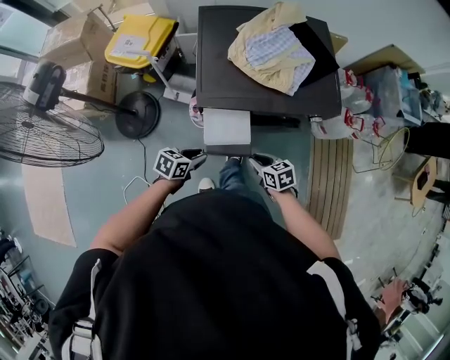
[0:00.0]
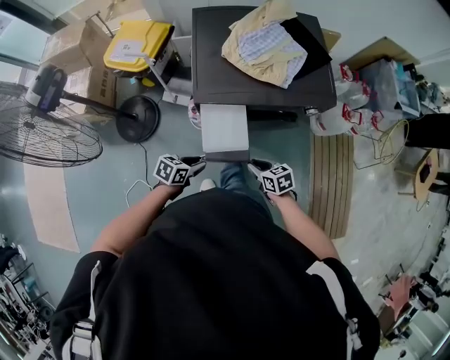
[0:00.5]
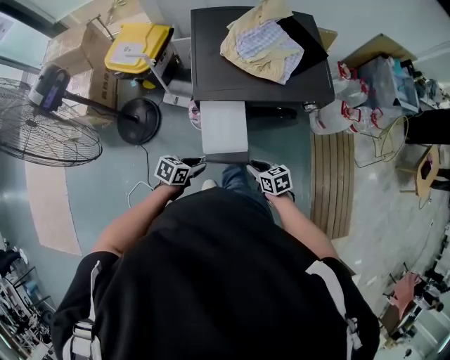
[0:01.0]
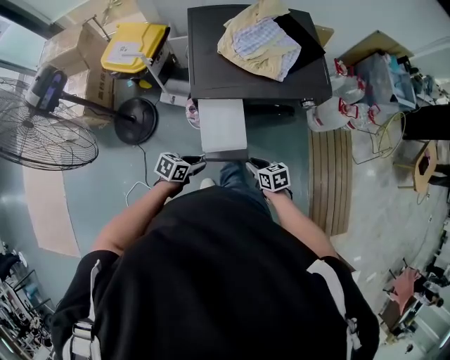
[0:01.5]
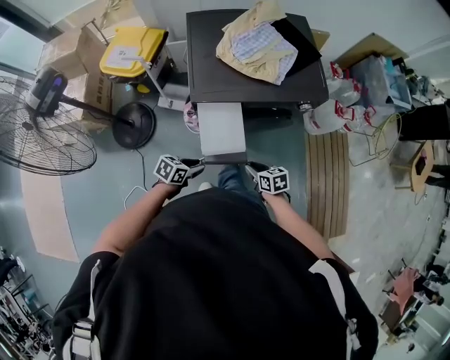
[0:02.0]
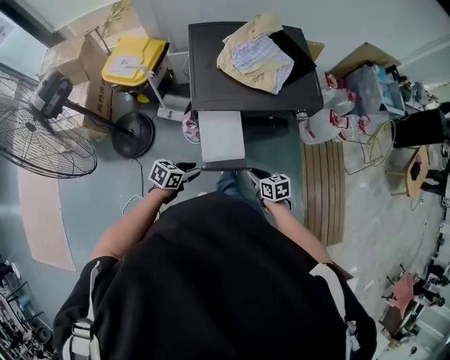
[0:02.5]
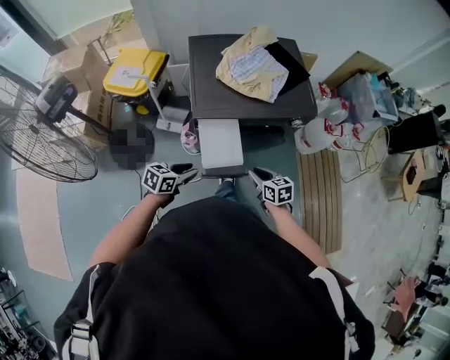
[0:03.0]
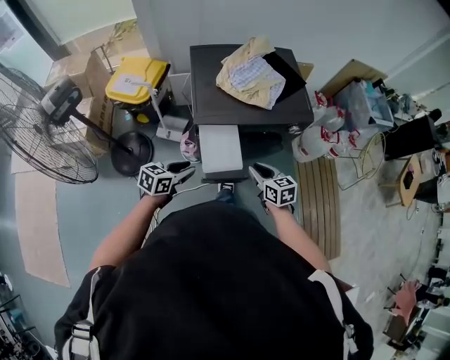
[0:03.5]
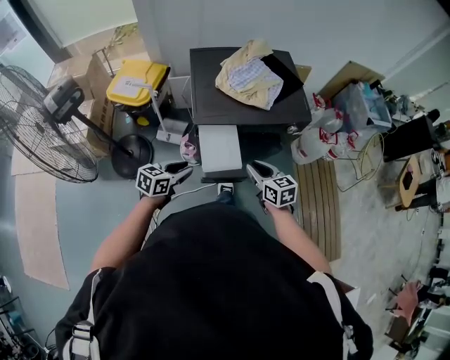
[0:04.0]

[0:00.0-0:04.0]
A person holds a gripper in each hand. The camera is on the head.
0:00.0 to 0:02.0: The right gripper ends up approximately 5 cm from where it was; the left gripper moves approximately 5 cm.
0:02.0 to 0:04.0: Both grippers move upward, some 15 cm. The right gripper turns by roughly 30 degrees. The left gripper swivels some 20 degrees.

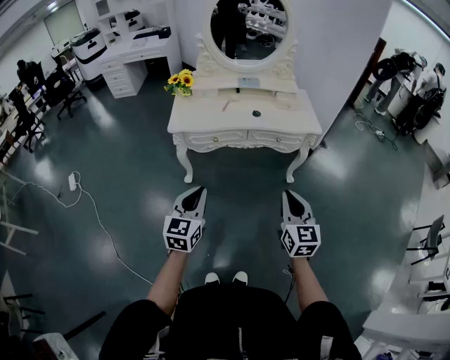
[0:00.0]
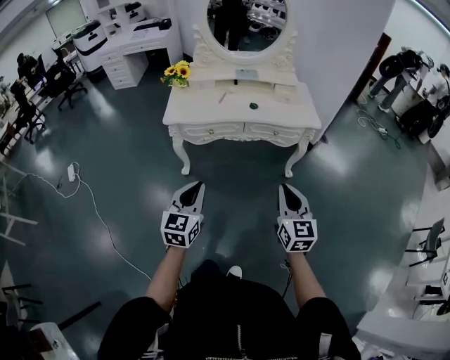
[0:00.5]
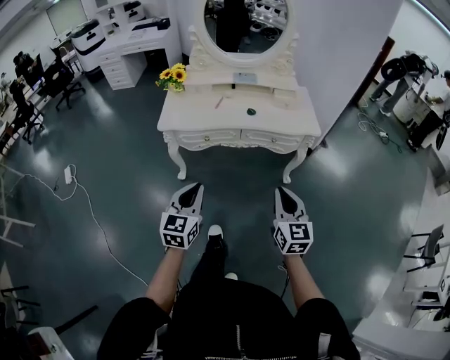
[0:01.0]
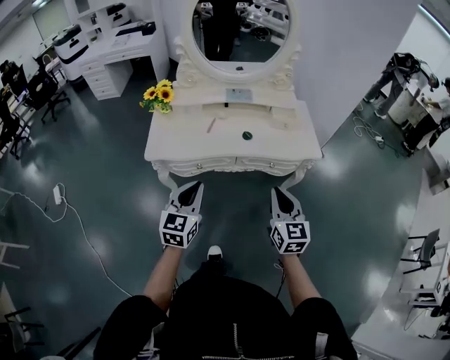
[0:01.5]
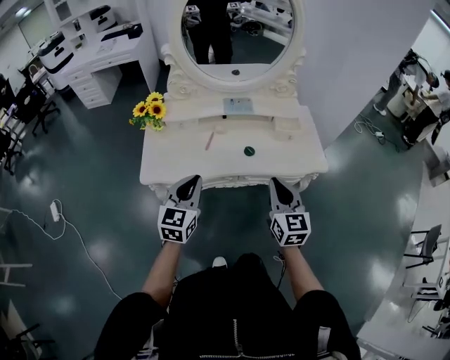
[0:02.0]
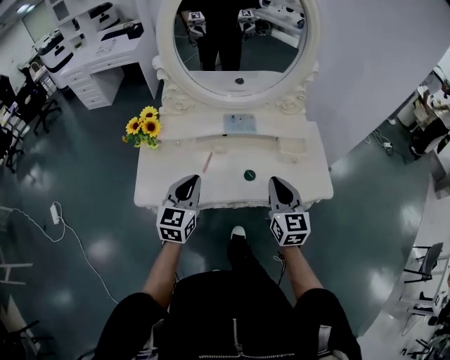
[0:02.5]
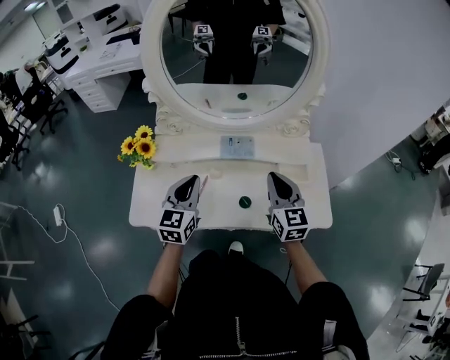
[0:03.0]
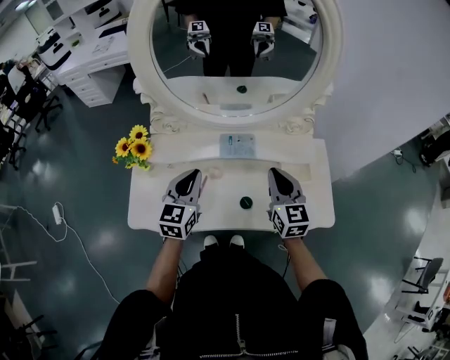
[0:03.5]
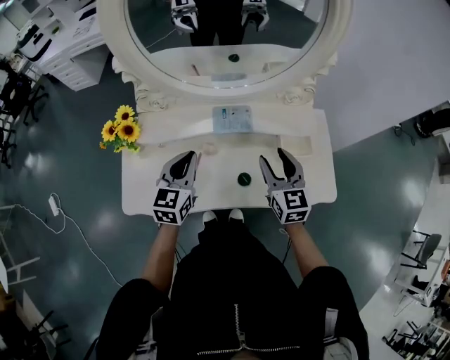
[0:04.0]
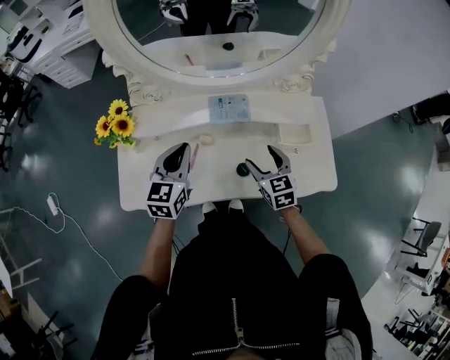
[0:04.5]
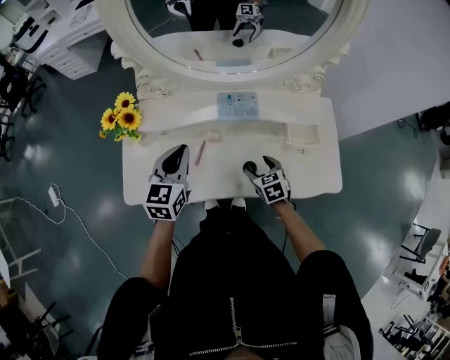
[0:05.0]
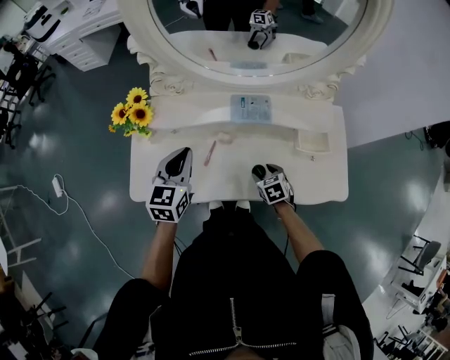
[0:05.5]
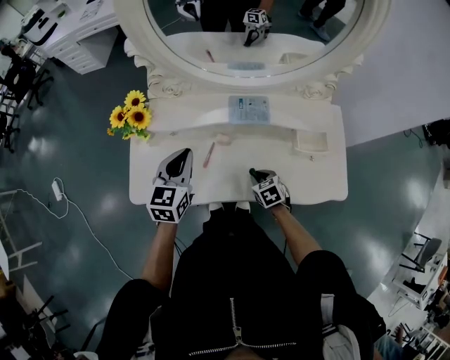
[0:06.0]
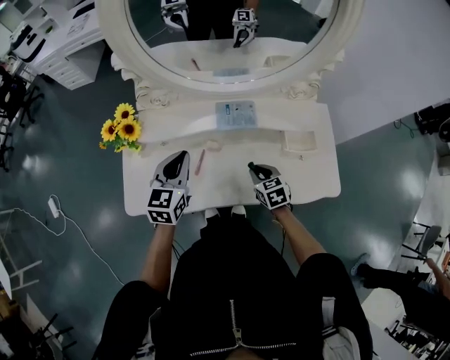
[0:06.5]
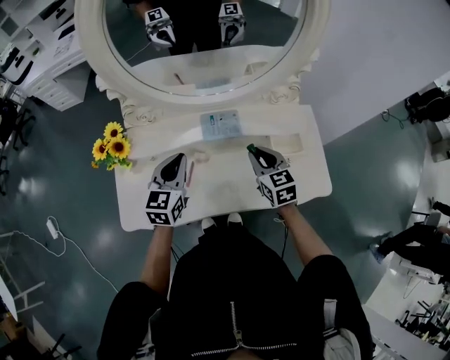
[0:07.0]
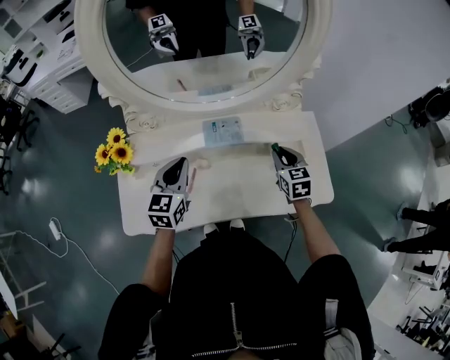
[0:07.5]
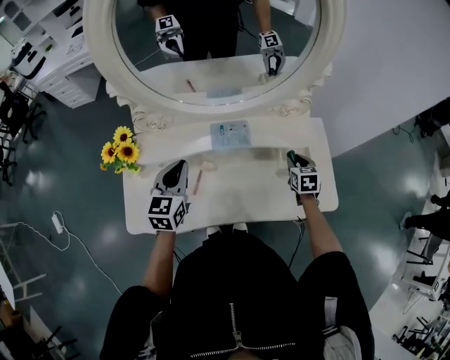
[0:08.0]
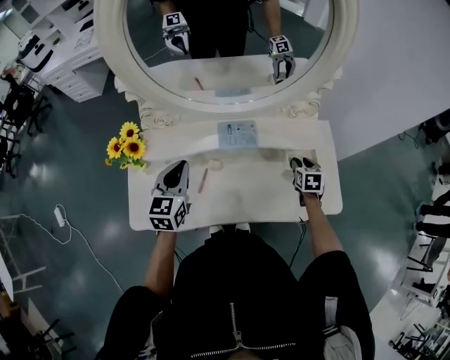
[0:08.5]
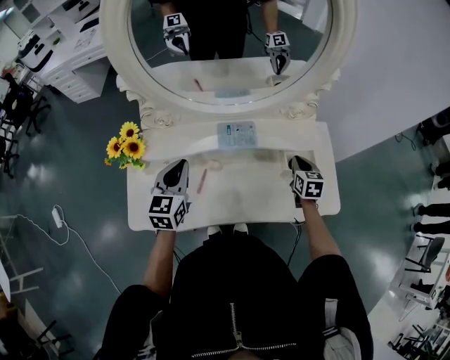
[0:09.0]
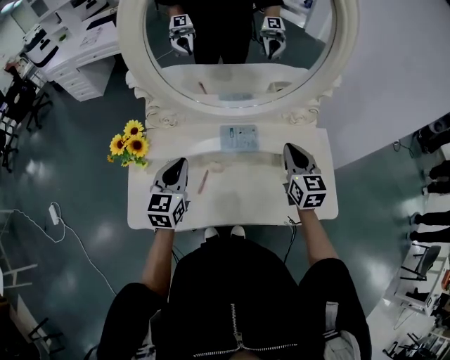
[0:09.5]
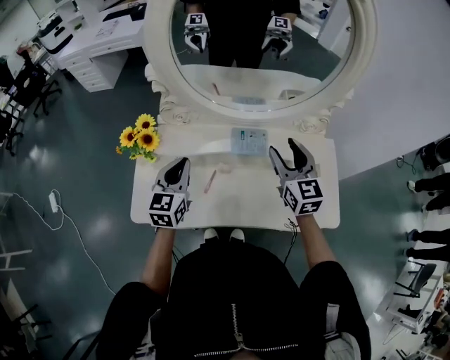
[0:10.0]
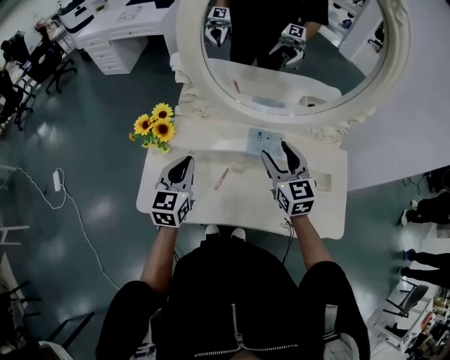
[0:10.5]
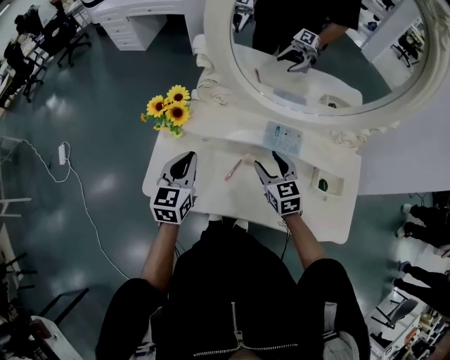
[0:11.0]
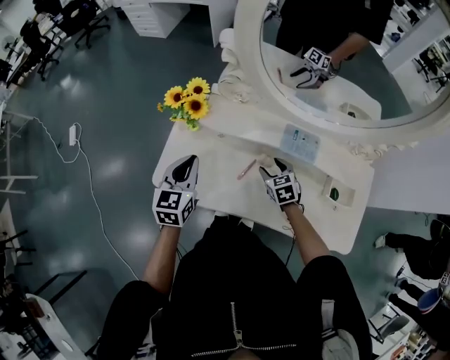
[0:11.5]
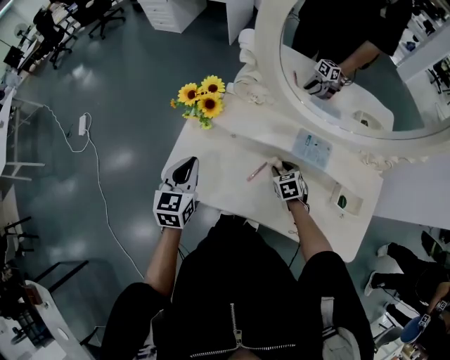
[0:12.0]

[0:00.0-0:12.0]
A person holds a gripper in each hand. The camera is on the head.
0:00.0 to 0:02.0: The two grippers go approximately 40 cm forward.
0:02.0 to 0:04.0: The grippers both shift forward by approximately 30 cm. The right gripper opens its fingers.
0:04.0 to 0:06.0: The left gripper is displaced to the left by some 5 cm, while the right gripper moves downward, some 25 cm, tips its fingers downward by some 40 degrees, and closes up.
0:06.0 to 0:08.0: The right gripper heads to the right, forward and upward, covering about 25 cm, and swivels approximately 30 degrees. The left gripper shifts roughly 5 cm forward.
0:08.0 to 0:10.0: The right gripper moves upward and to the left, approximately 30 cm, angles its fingers upward, by roughly 30 degrees, and opens up, while the left gripper goes roughly 5 cm to the left.
0:10.0 to 0:12.0: The right gripper travels downward and to the left by approximately 35 cm, and angles its fingers downward, by approximately 50 degrees; the left gripper heads to the left, covering roughly 15 cm, and rotates some 20 degrees.

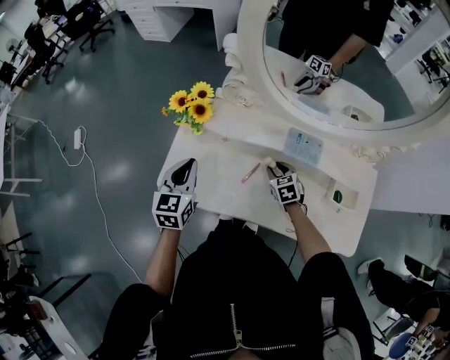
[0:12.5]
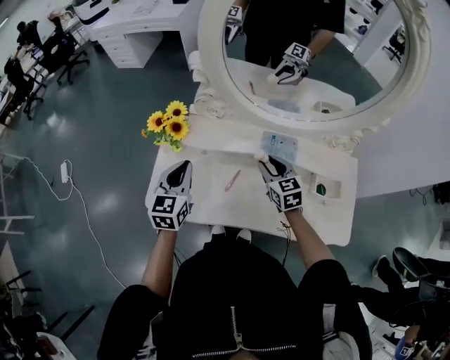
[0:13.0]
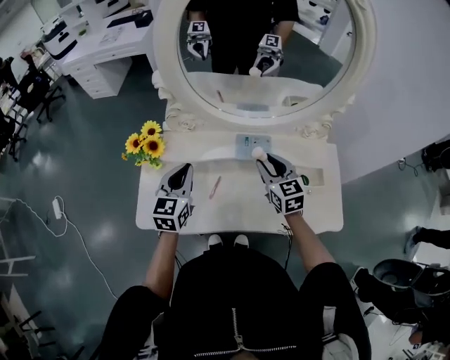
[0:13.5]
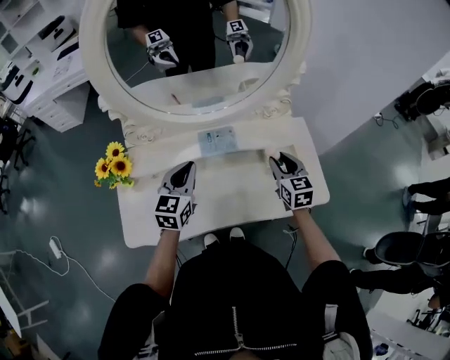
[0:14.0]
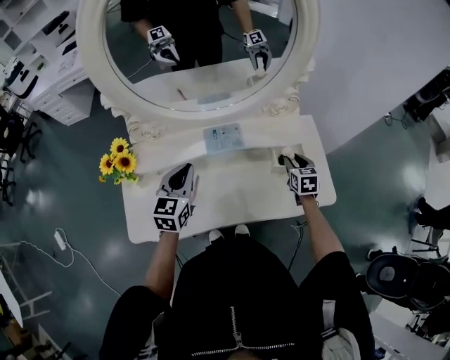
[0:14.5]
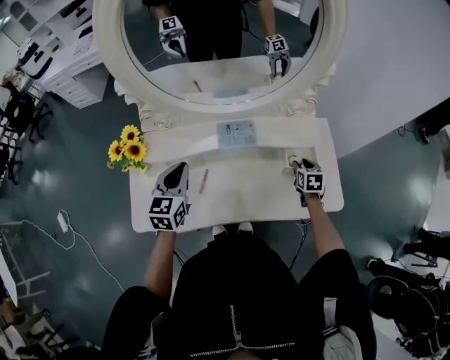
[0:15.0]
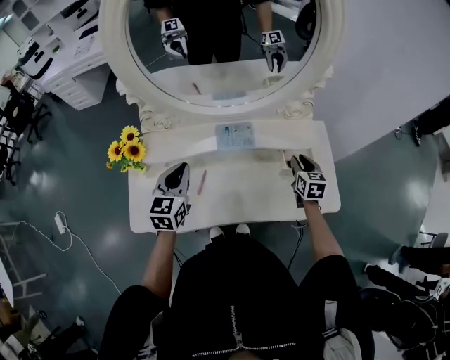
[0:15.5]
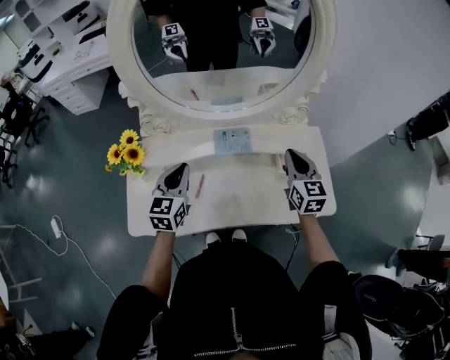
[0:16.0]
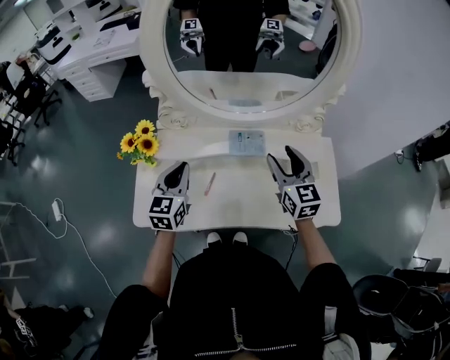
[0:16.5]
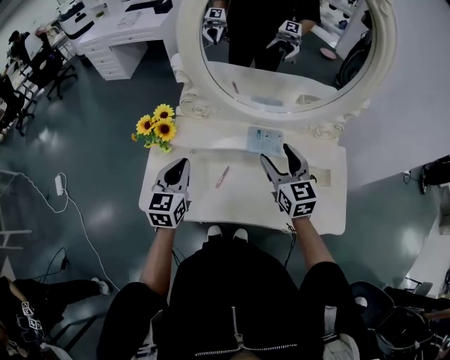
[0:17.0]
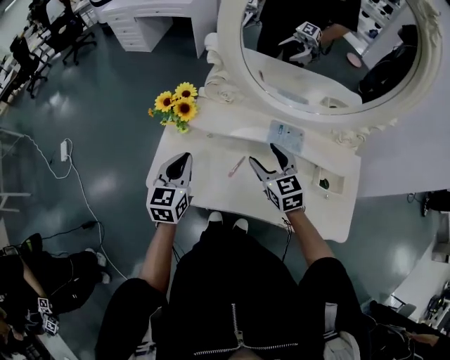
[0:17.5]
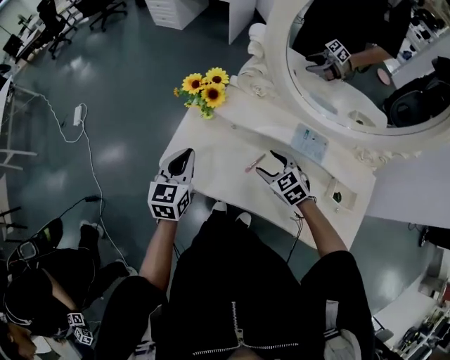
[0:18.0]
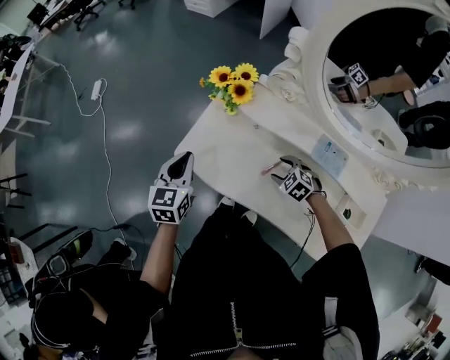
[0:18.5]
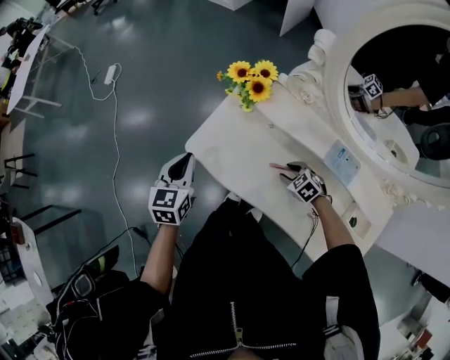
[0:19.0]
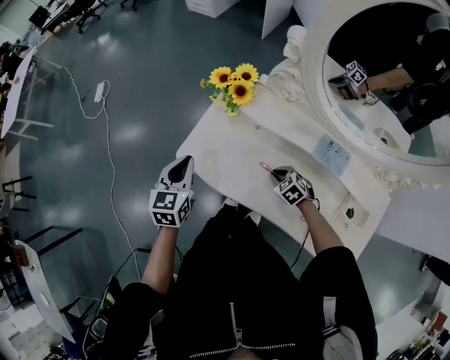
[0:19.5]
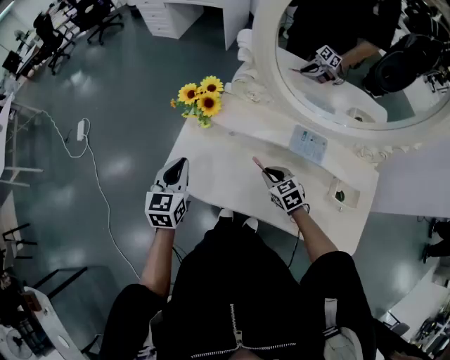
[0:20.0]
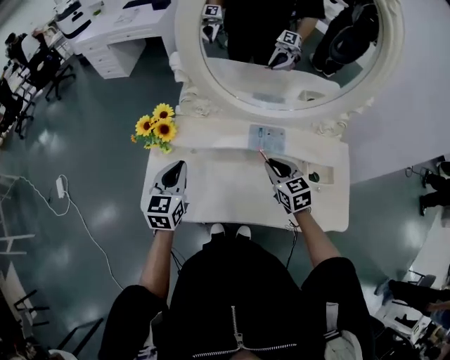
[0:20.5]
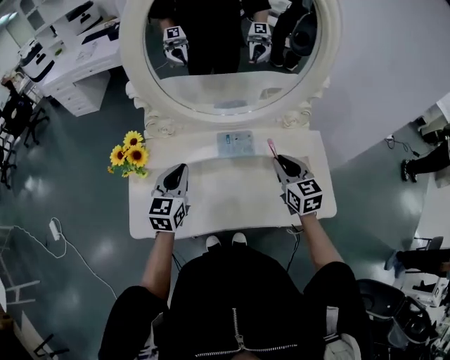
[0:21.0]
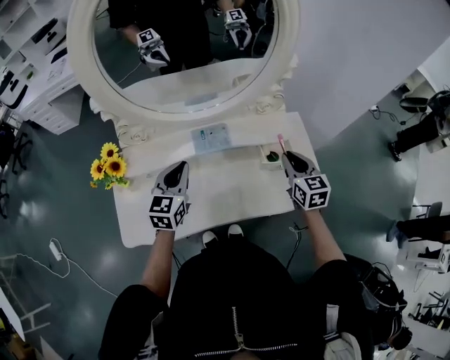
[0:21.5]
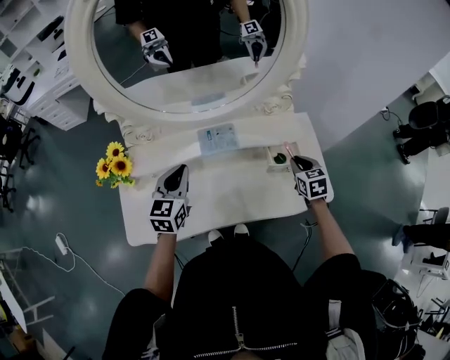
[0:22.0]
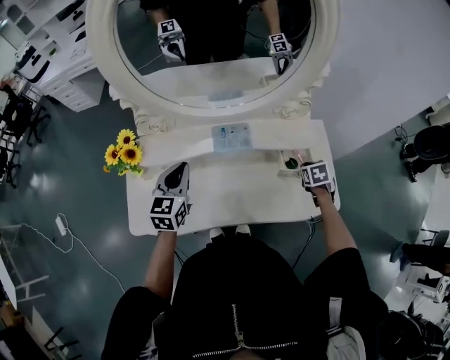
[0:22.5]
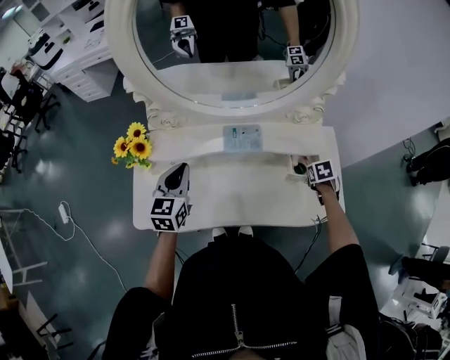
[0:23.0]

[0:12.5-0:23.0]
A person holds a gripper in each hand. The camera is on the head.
0:12.5 to 0:14.5: The right gripper shifts by roughly 35 cm, and rotates some 40 degrees. The left gripper moves about 20 cm, and turns by approximately 30 degrees.
0:14.5 to 0:16.5: The left gripper travels to the left by approximately 10 cm, while the right gripper travels upward and to the left by some 25 cm, changes its angle by approximately 40 degrees, and closes and opens again.
0:16.5 to 0:19.0: The right gripper shifts about 30 cm downward, and angles its fingers downward, by some 50 degrees; the left gripper moves approximately 30 cm, and swivels roughly 40 degrees.
0:19.0 to 0:21.0: The left gripper moves approximately 30 cm, and swivels roughly 50 degrees, while the right gripper moves upward, approximately 25 cm, tilts its fingers some 40 degrees upward, and closes.
0:21.0 to 0:23.0: The right gripper shifts approximately 25 cm downward and to the right, and points its fingers roughly 50 degrees further downward; the left gripper travels to the right and back again, roughly 10 cm each way.
